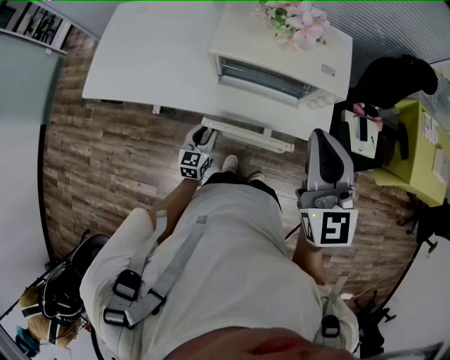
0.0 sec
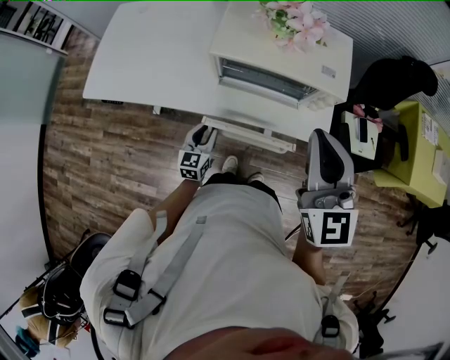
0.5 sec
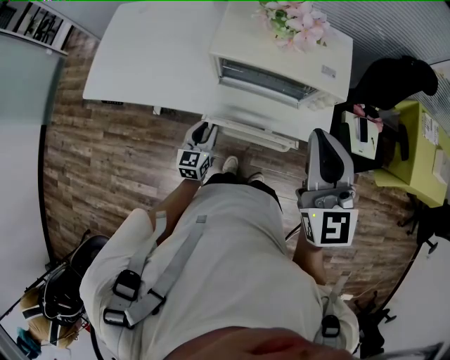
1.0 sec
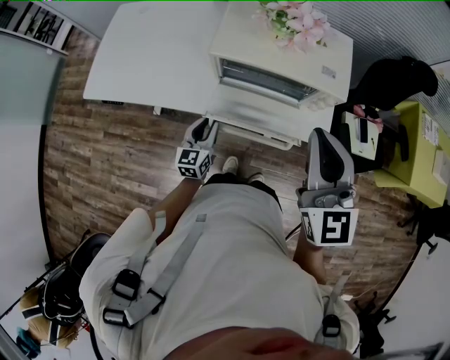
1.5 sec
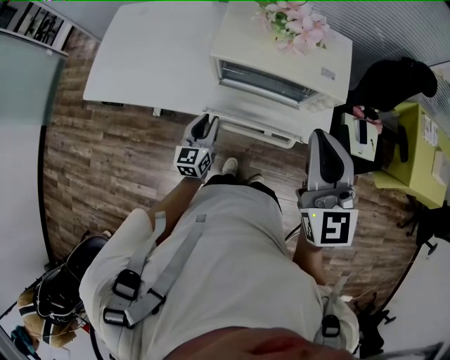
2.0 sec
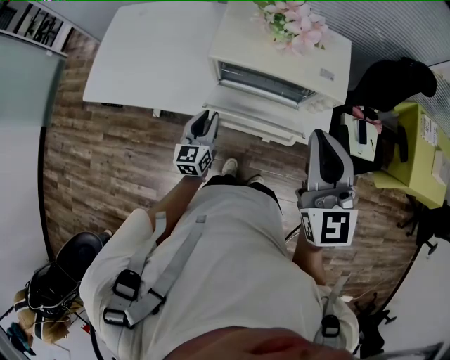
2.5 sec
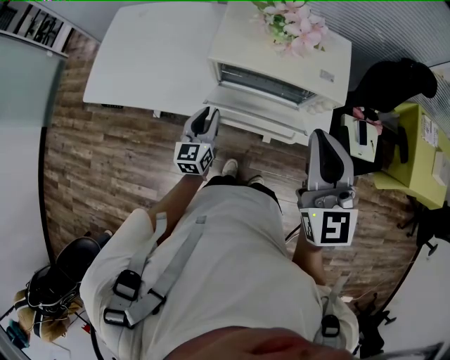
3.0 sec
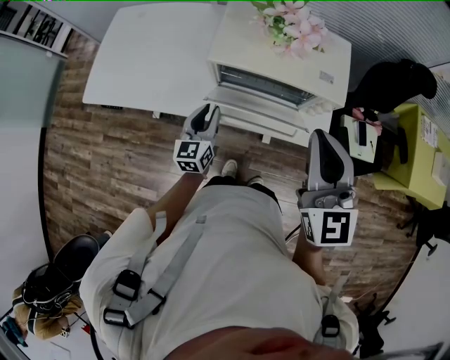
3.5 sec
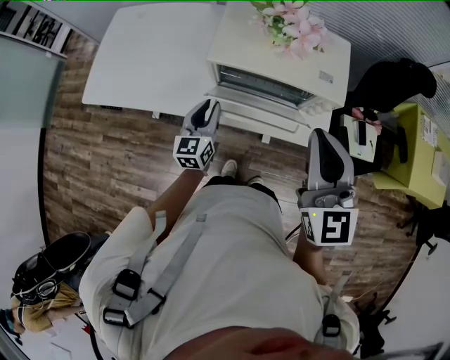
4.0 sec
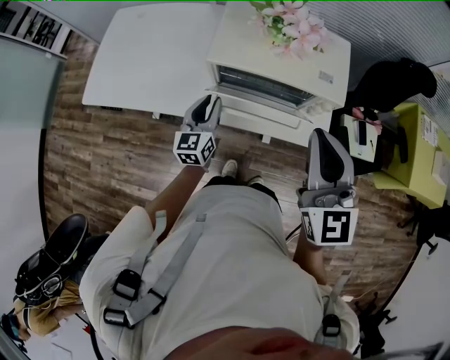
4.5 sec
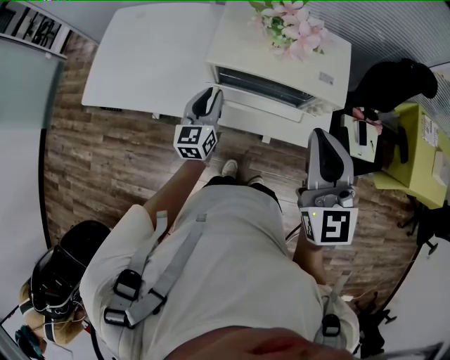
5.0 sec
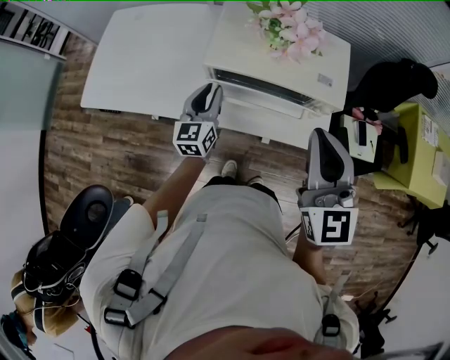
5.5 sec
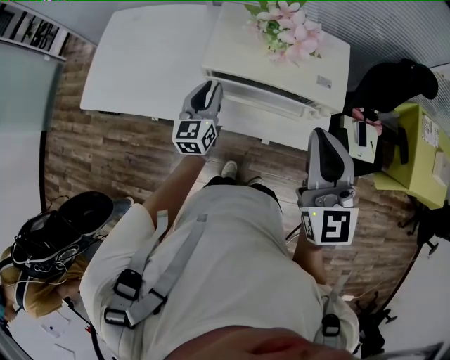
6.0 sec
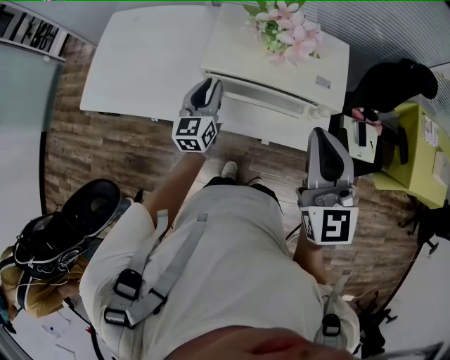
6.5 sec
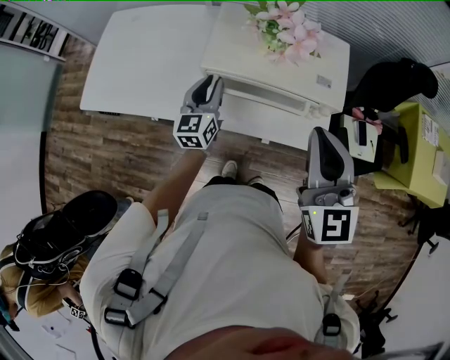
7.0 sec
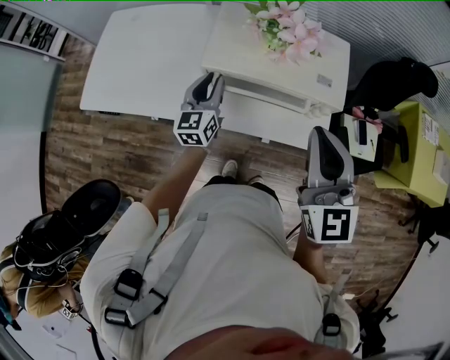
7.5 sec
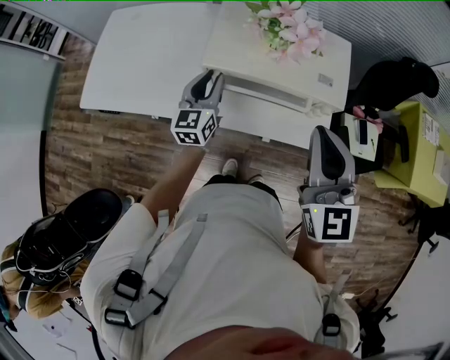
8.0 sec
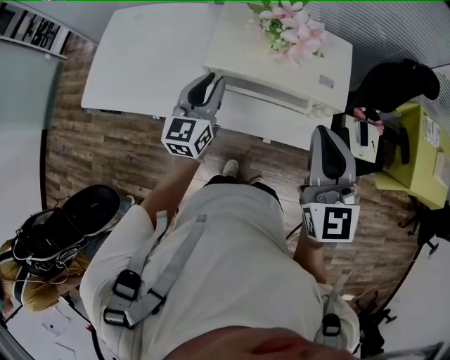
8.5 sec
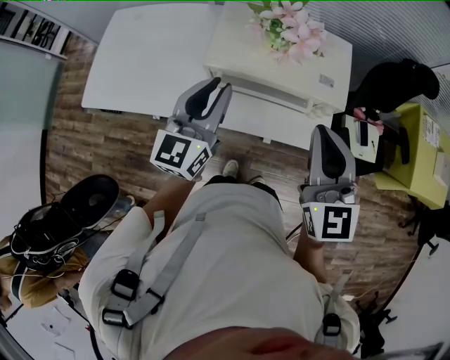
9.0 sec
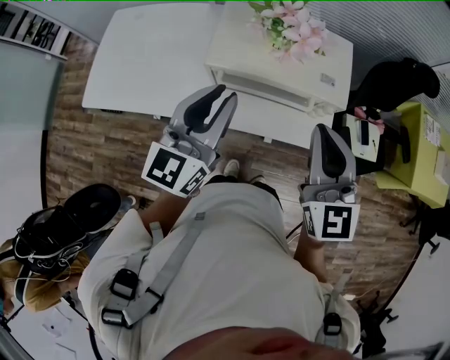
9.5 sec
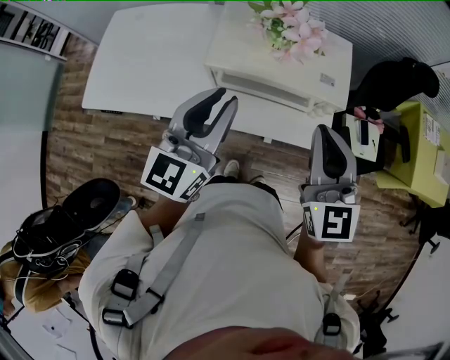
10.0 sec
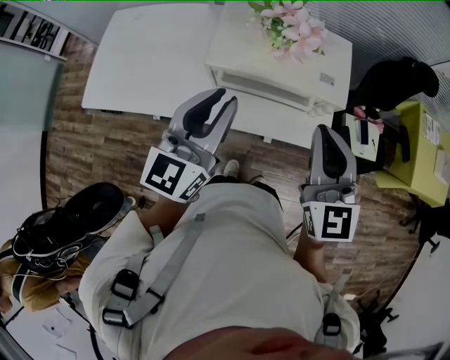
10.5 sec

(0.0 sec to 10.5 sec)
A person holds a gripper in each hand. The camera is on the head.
0.0 sec - 2.0 sec: The left gripper shifts some 5 cm upward.
2.0 sec - 4.0 sec: The left gripper ends up roughly 5 cm from where it was.
4.0 sec - 6.5 sec: The left gripper is displaced forward by roughly 10 cm.
6.5 sec - 8.5 sec: The left gripper moves upward, some 5 cm.
8.5 sec - 10.5 sec: The left gripper heads upward and backward, covering roughly 15 cm.

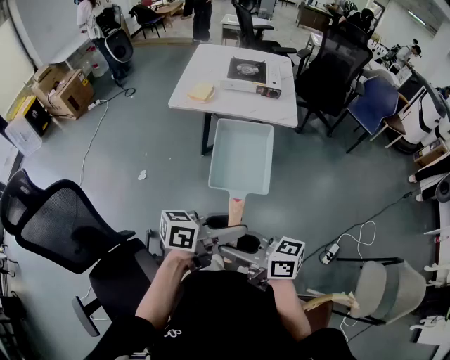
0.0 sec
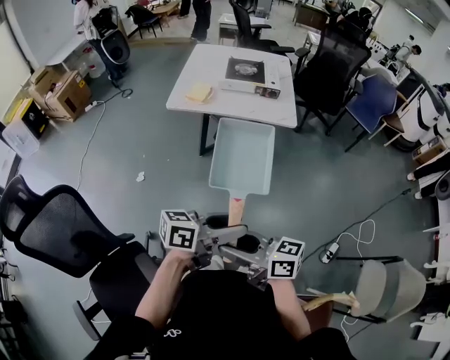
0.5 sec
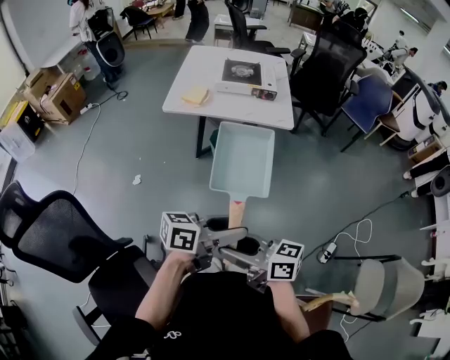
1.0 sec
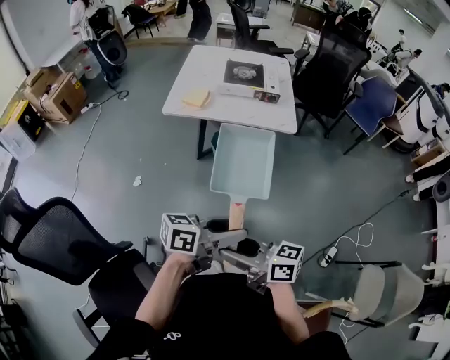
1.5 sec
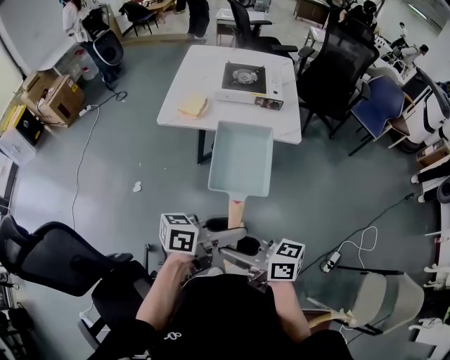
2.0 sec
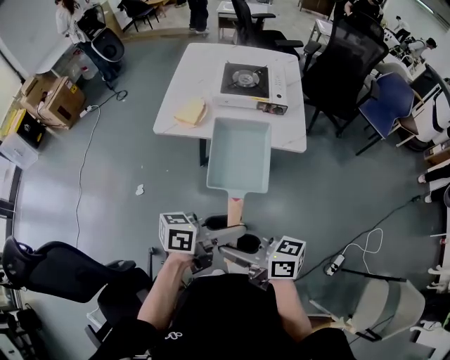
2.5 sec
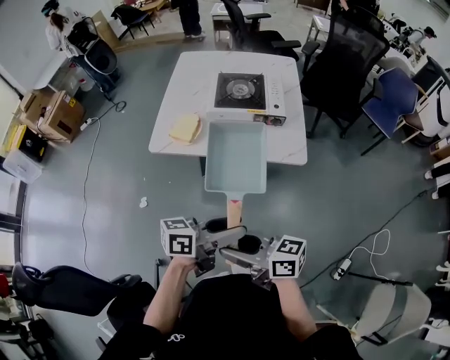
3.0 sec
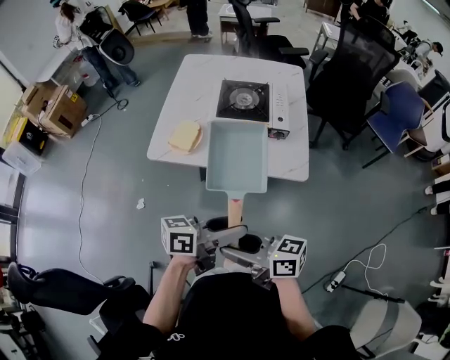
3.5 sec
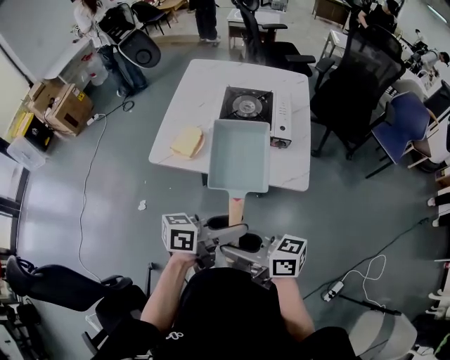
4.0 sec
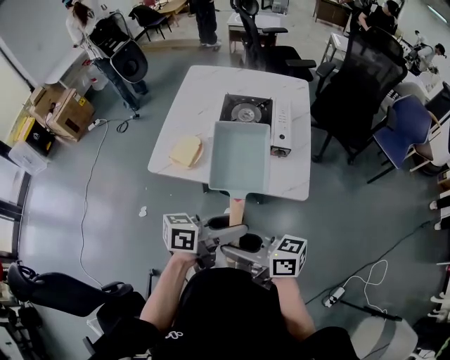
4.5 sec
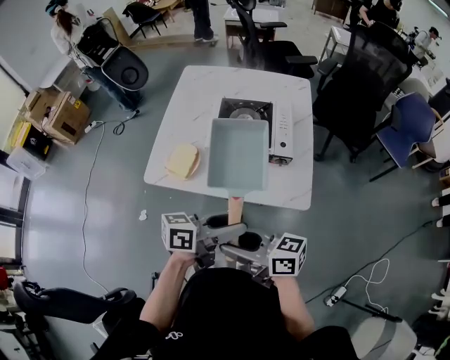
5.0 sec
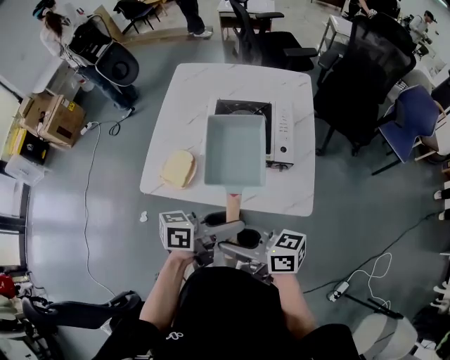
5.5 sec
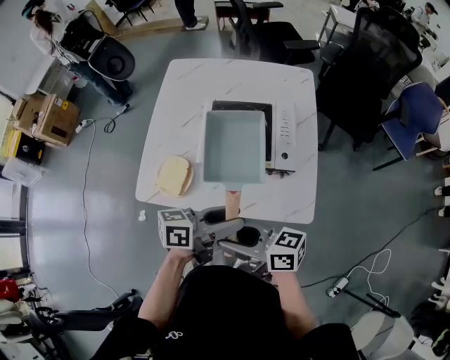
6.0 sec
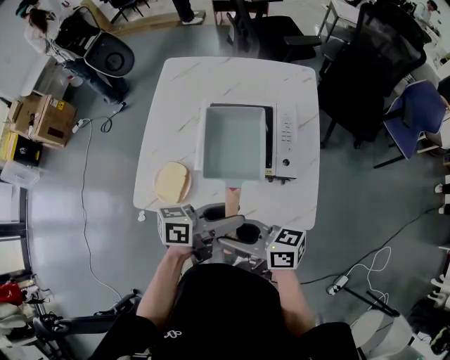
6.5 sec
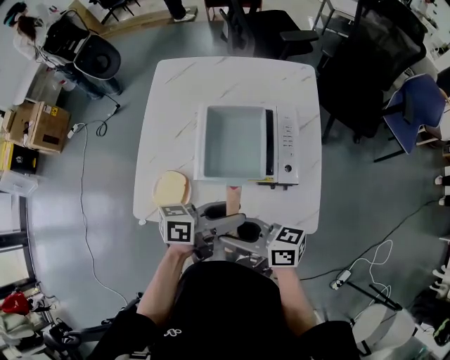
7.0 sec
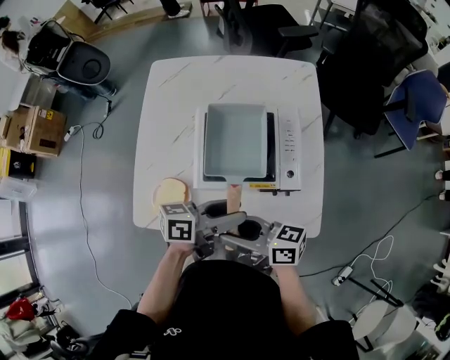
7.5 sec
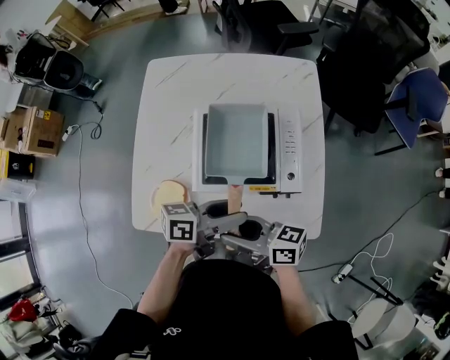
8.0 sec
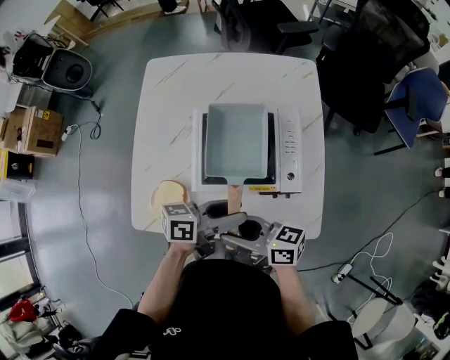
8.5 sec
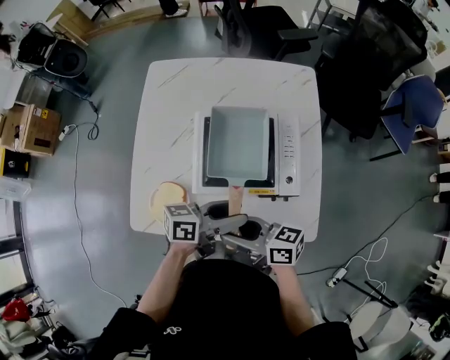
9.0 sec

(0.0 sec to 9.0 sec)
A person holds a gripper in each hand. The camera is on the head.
0.0 sec - 2.0 sec: The left gripper shifts by some 15 cm. Meanwhile the right gripper changes place by approximately 15 cm.
2.0 sec - 4.5 sec: The right gripper ends up approximately 25 cm from where it was. The left gripper shifts by about 25 cm.
4.5 sec - 7.0 sec: The right gripper ends up approximately 25 cm from where it was; the left gripper moves some 25 cm.
7.0 sec - 9.0 sec: The right gripper moves roughly 5 cm; the left gripper moves approximately 5 cm.

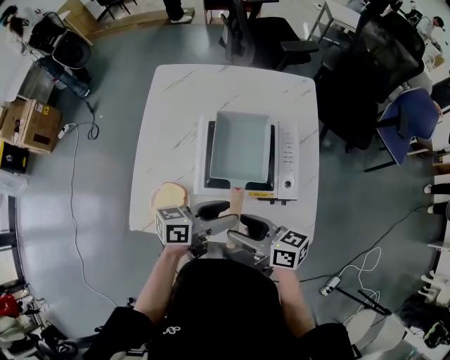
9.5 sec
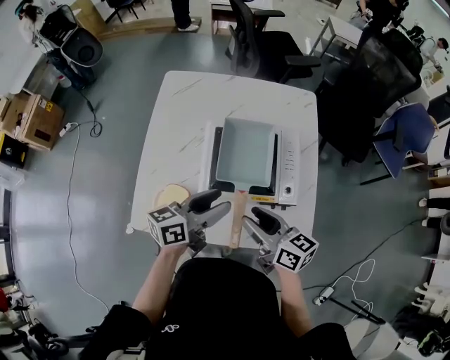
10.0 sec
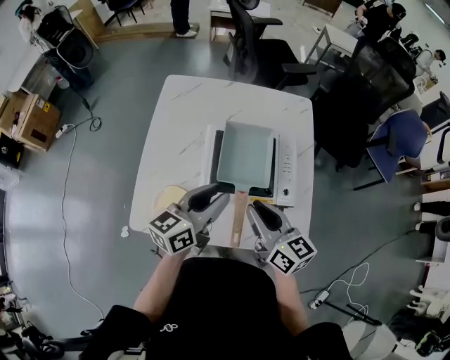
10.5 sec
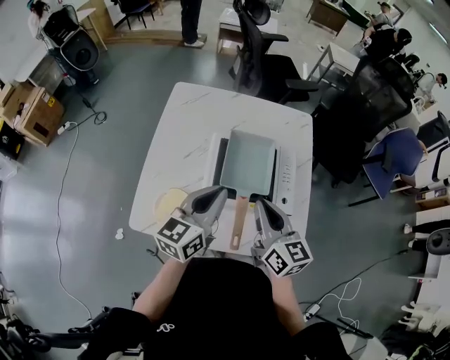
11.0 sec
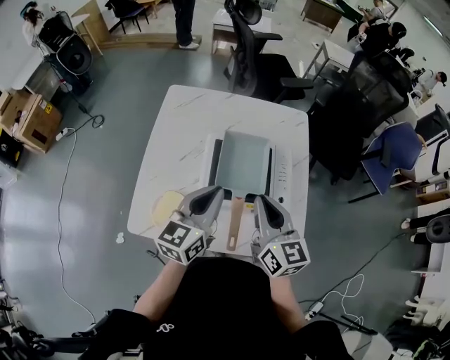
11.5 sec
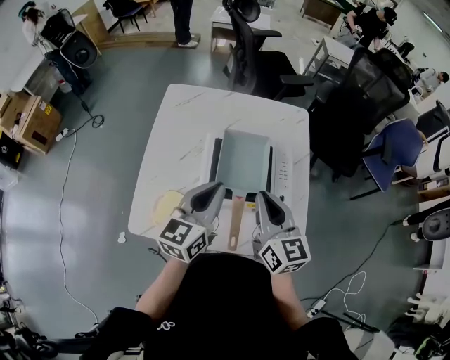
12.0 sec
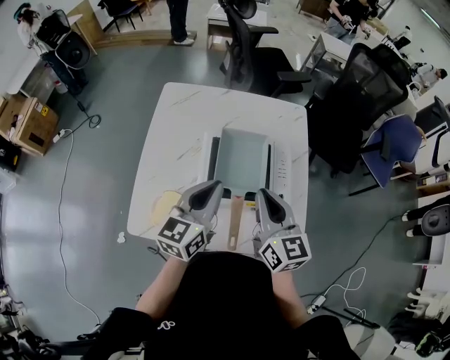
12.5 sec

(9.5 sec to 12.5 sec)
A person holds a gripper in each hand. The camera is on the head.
9.5 sec - 11.0 sec: Both grippers travel together upward, approximately 10 cm. The left gripper turns by approximately 50 degrees, and closes. The right gripper rotates roughly 40 degrees, and closes up.
11.0 sec - 12.5 sec: The grippers stay close to where they were, moving slightly.

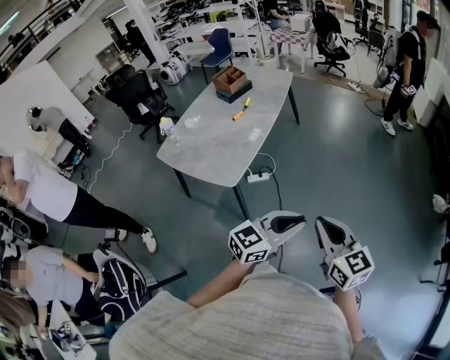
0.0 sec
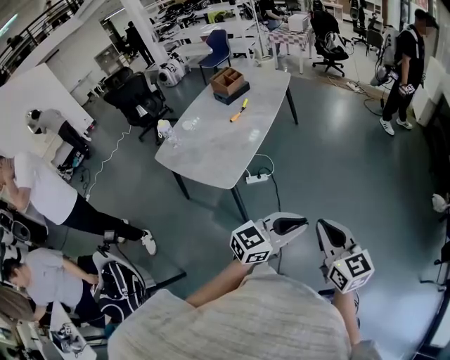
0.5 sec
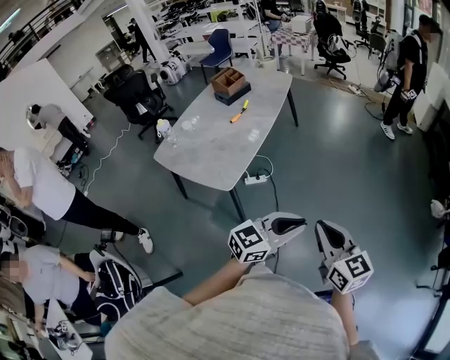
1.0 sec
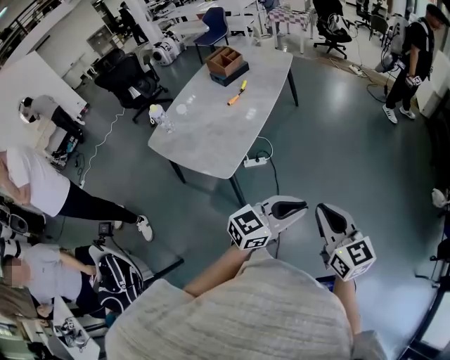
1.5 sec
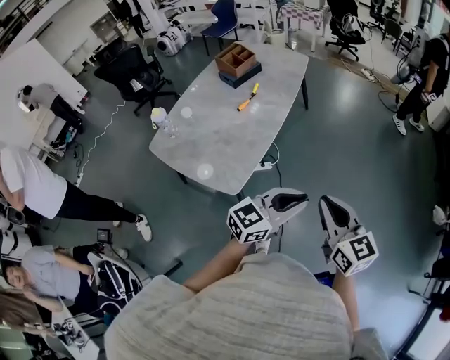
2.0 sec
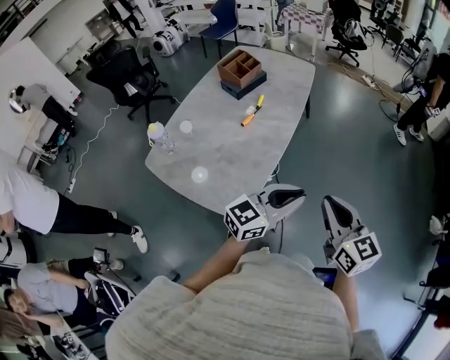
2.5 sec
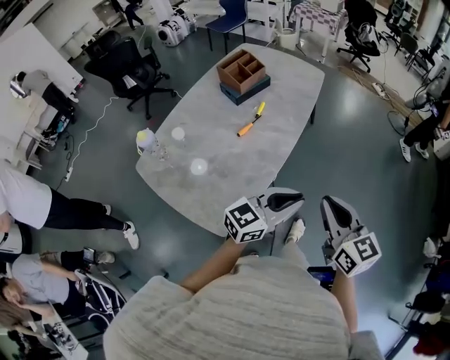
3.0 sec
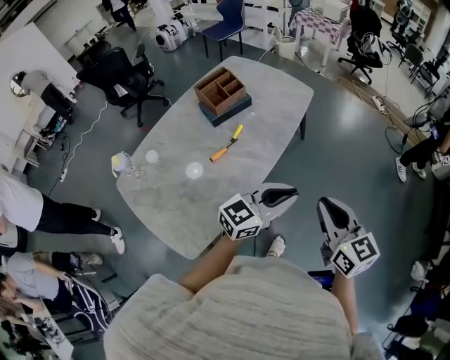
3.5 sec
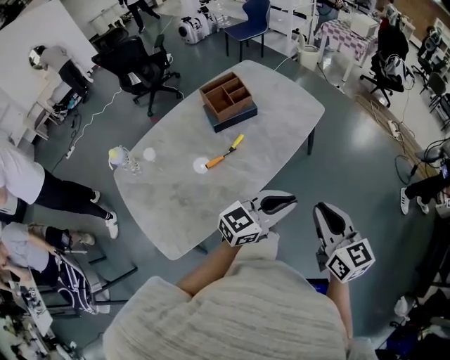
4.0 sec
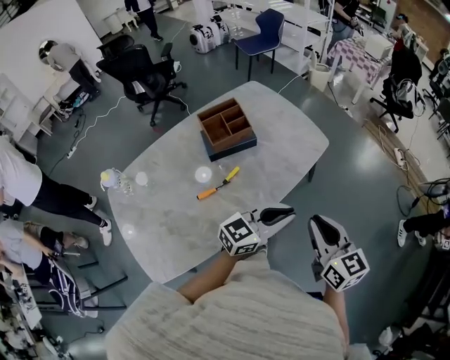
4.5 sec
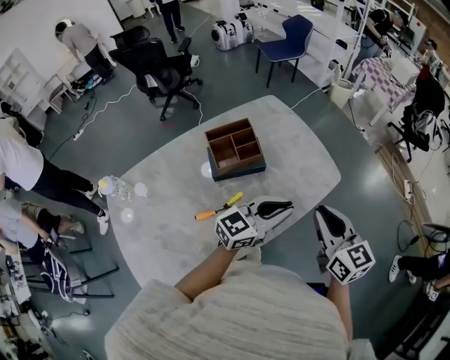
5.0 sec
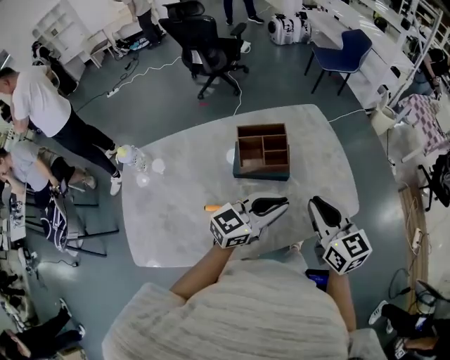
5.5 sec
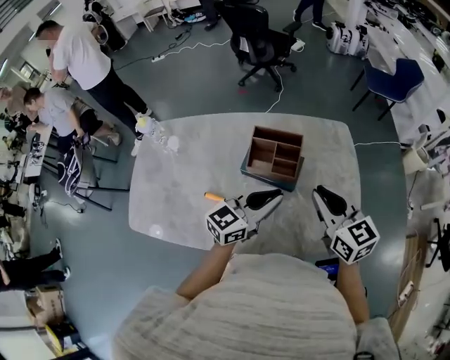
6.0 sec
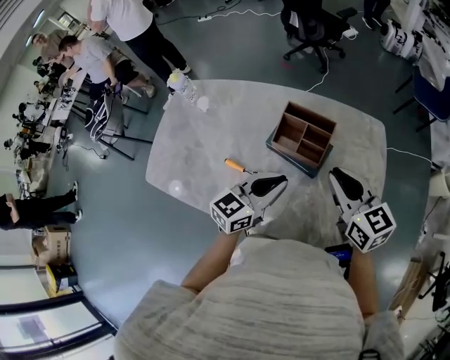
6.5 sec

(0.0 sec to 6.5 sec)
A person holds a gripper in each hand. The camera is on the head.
0.0 sec - 2.0 sec: The two grippers go approximately 20 cm forward and to the left.
2.0 sec - 4.5 sec: Both grippers are carried forward, about 60 cm. The left gripper rotates some 20 degrees. Meanwhile the right gripper swivels some 20 degrees.
4.5 sec - 6.5 sec: The right gripper moves roughly 40 cm, and changes its angle by roughly 60 degrees. The left gripper shifts by approximately 30 cm, and turns by roughly 70 degrees.
